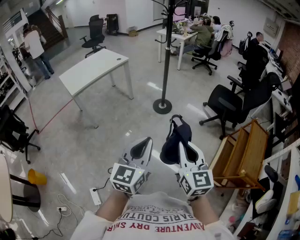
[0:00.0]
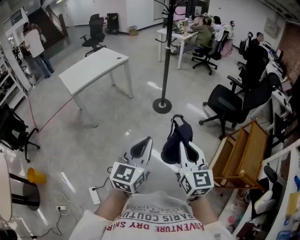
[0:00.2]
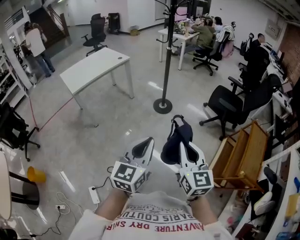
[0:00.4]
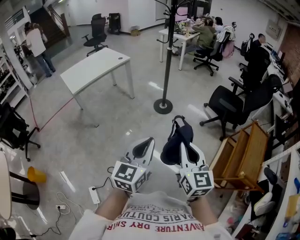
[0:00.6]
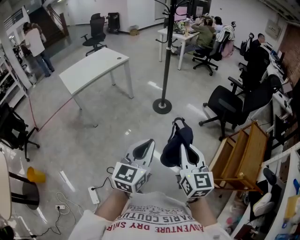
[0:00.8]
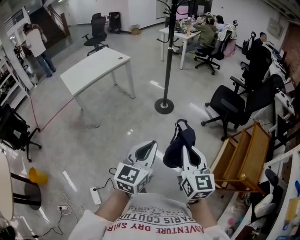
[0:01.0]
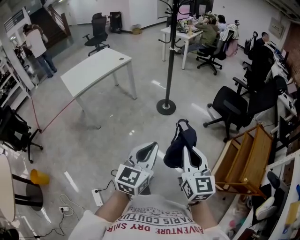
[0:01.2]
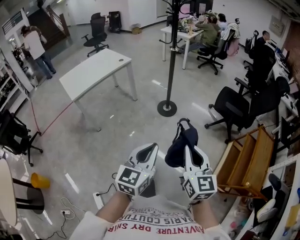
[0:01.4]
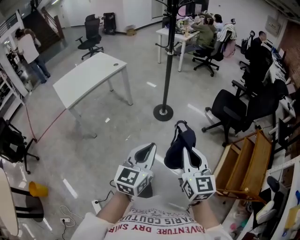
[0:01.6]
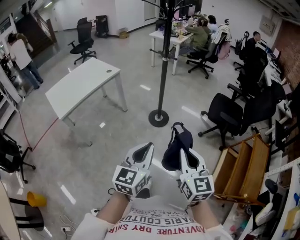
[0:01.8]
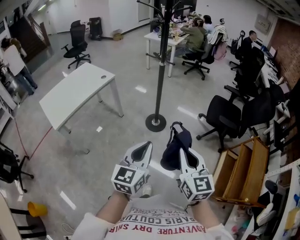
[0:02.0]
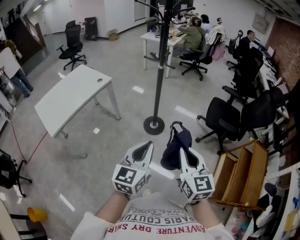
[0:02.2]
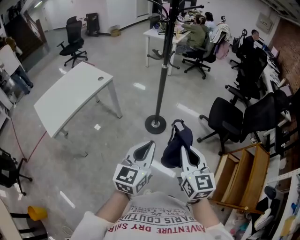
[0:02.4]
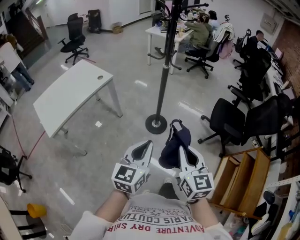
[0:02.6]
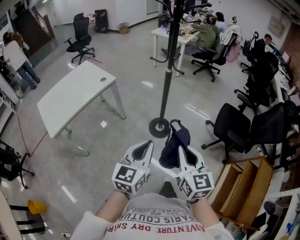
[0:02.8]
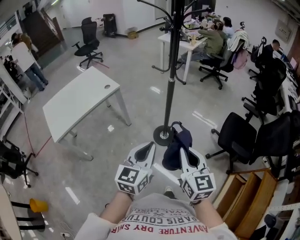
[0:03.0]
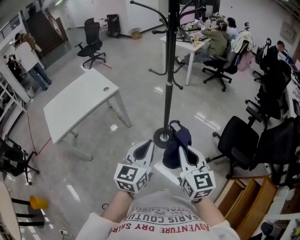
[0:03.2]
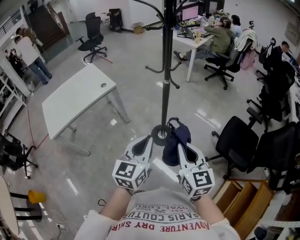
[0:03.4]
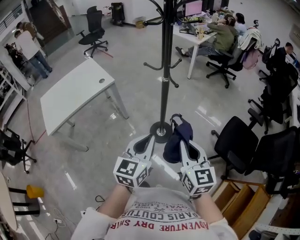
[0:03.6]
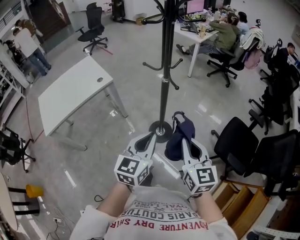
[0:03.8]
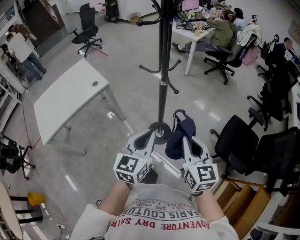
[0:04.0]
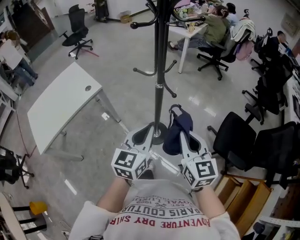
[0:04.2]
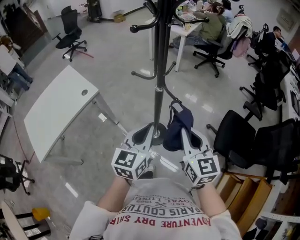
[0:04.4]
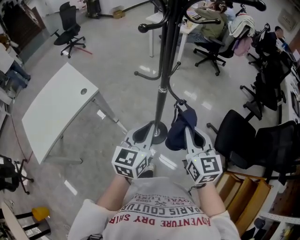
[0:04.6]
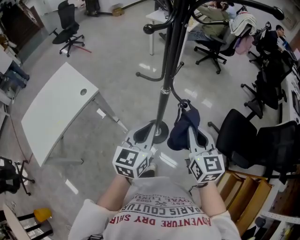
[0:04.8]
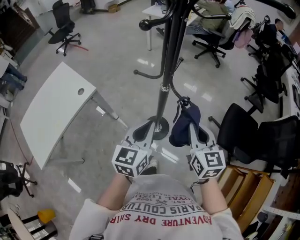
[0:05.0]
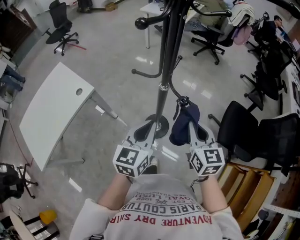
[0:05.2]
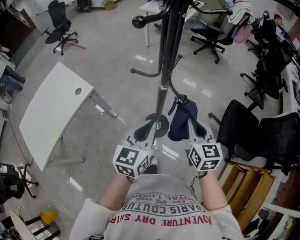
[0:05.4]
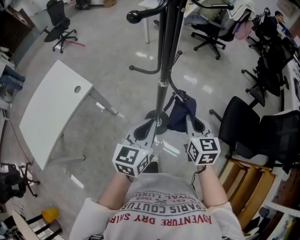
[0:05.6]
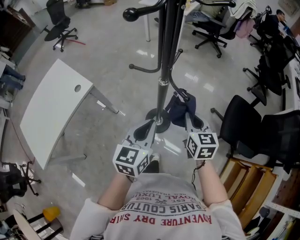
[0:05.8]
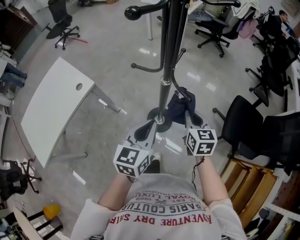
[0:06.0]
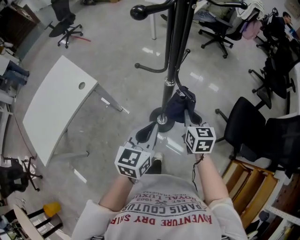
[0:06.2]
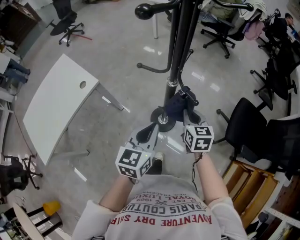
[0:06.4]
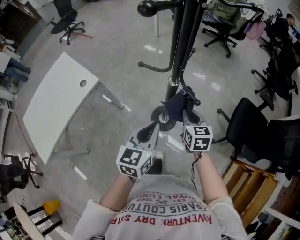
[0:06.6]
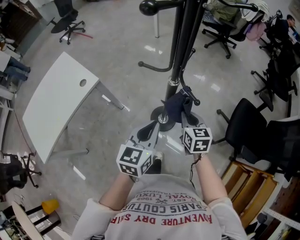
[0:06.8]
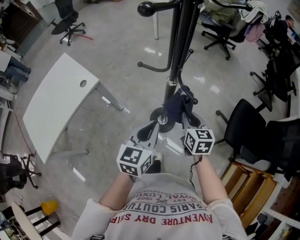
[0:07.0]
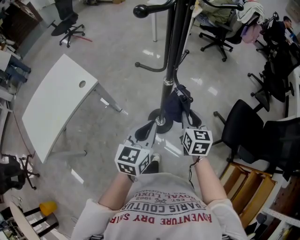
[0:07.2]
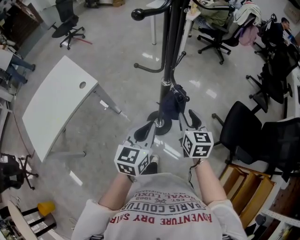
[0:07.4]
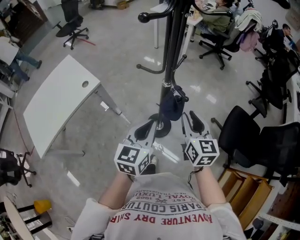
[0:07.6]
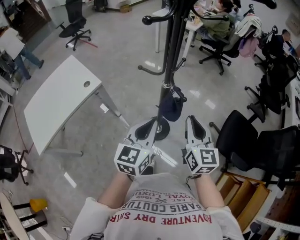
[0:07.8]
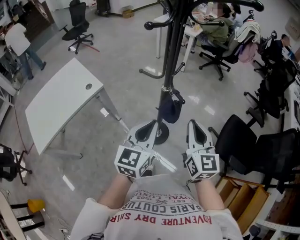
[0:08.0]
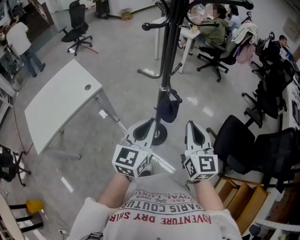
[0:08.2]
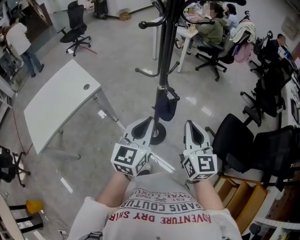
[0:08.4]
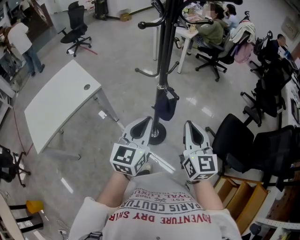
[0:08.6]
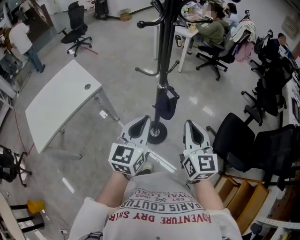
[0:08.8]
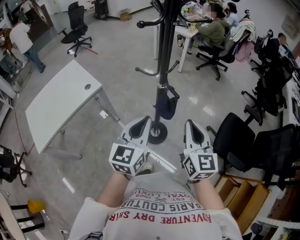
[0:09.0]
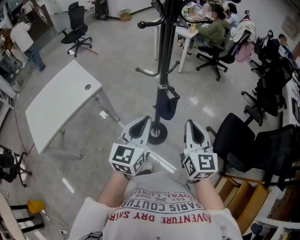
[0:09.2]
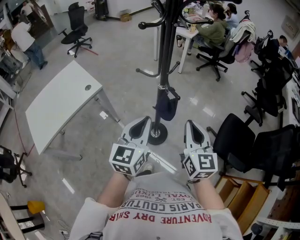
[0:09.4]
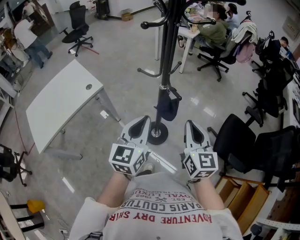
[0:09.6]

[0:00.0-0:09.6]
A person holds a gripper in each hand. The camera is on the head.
0.0 to 1.6 s: The two grippers go roughly 15 cm forward.
1.6 to 3.2 s: The pair of grippers is taken forward, some 50 cm.
3.2 to 4.8 s: The grippers both shift forward by about 30 cm.
4.8 to 6.4 s: The left gripper is displaced downward by approximately 5 cm, while the right gripper shifts roughly 20 cm downward and forward.
6.4 to 8.0 s: The left gripper moves upward and backward, roughly 10 cm, while the right gripper travels upward and backward by approximately 20 cm, swivels approximately 30 degrees, and opens, then closes again.
8.0 to 9.6 s: There are only small adjustments of the grippers.

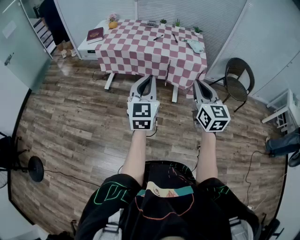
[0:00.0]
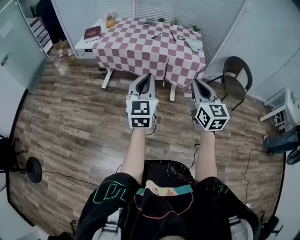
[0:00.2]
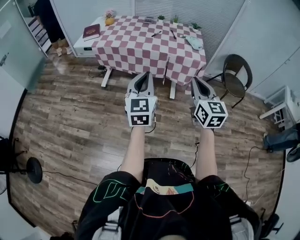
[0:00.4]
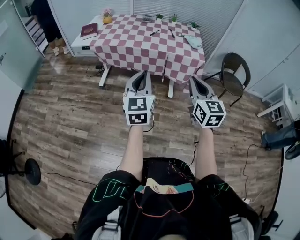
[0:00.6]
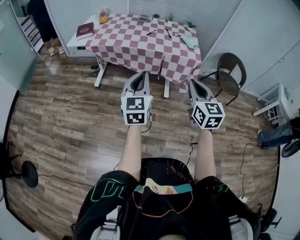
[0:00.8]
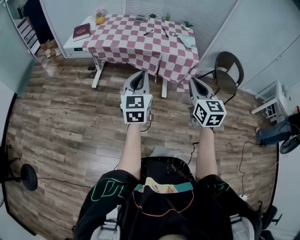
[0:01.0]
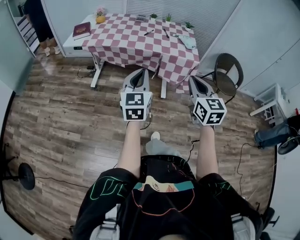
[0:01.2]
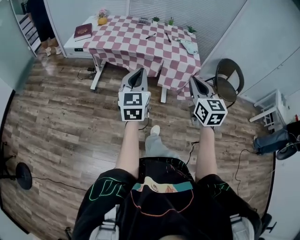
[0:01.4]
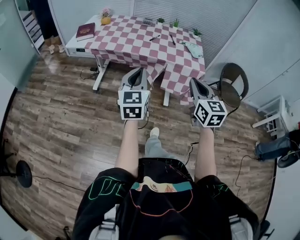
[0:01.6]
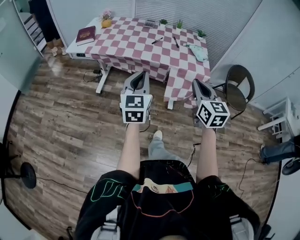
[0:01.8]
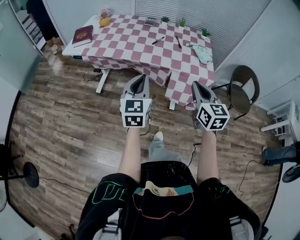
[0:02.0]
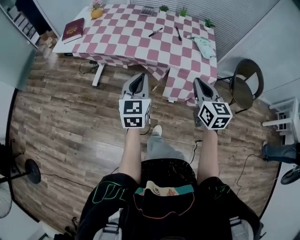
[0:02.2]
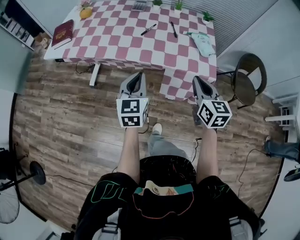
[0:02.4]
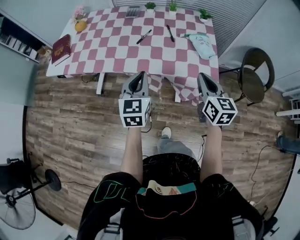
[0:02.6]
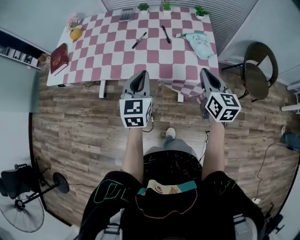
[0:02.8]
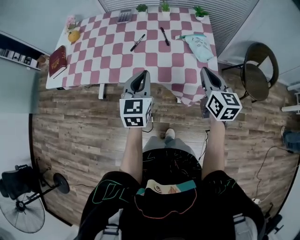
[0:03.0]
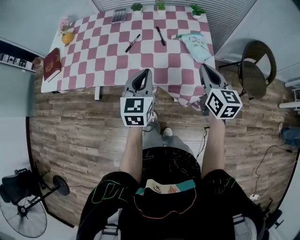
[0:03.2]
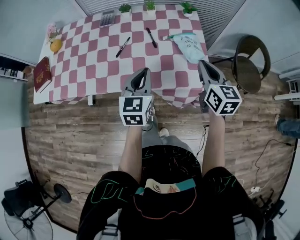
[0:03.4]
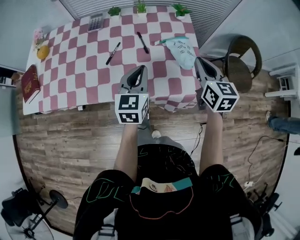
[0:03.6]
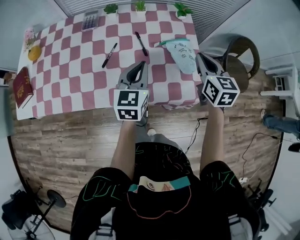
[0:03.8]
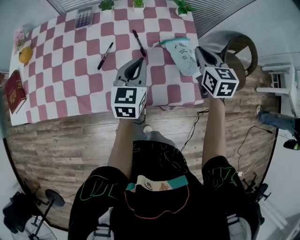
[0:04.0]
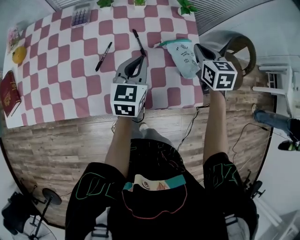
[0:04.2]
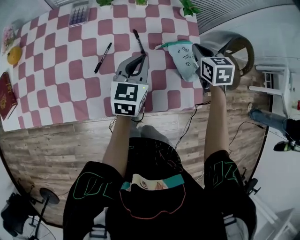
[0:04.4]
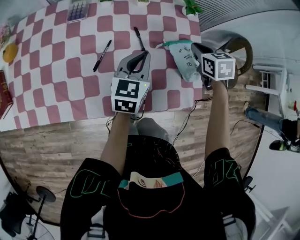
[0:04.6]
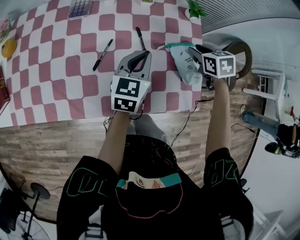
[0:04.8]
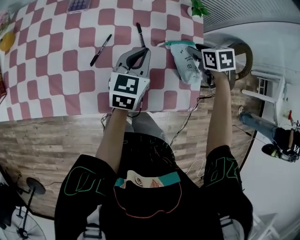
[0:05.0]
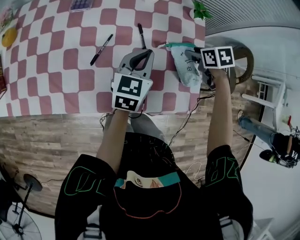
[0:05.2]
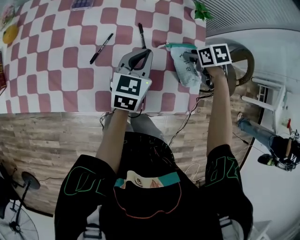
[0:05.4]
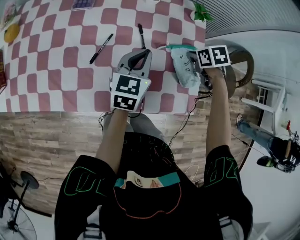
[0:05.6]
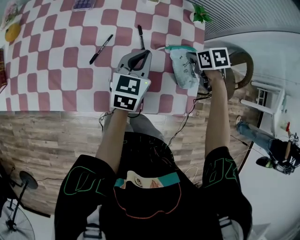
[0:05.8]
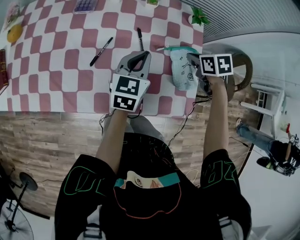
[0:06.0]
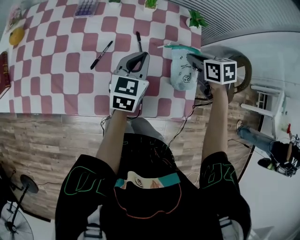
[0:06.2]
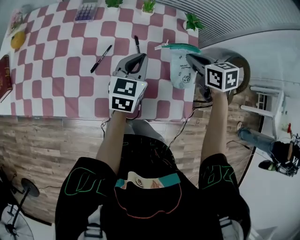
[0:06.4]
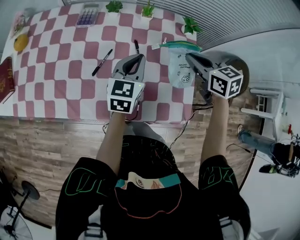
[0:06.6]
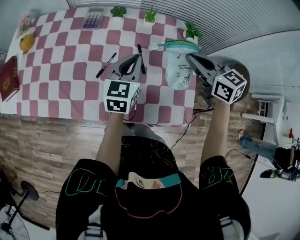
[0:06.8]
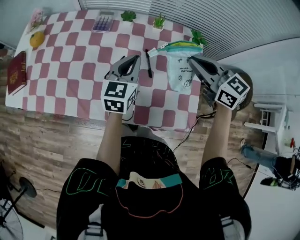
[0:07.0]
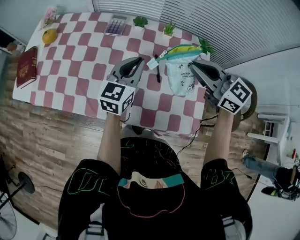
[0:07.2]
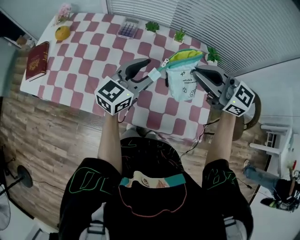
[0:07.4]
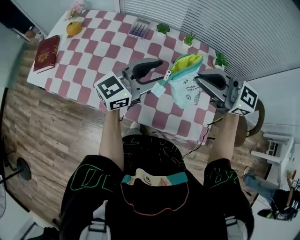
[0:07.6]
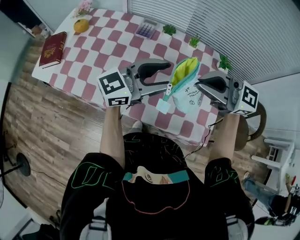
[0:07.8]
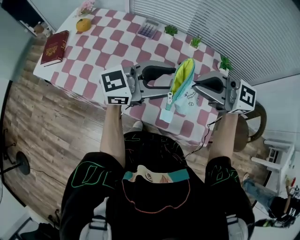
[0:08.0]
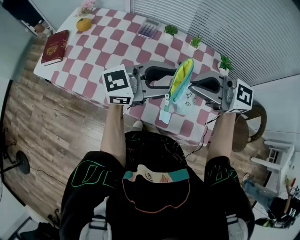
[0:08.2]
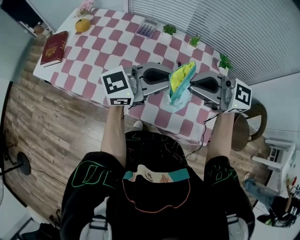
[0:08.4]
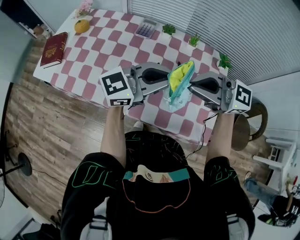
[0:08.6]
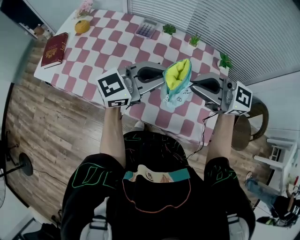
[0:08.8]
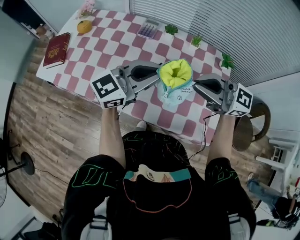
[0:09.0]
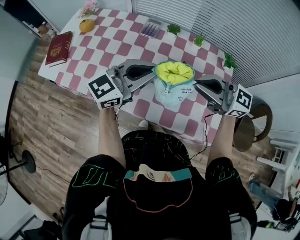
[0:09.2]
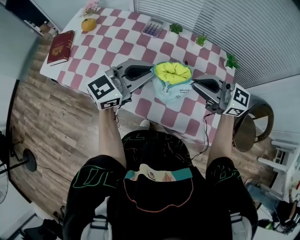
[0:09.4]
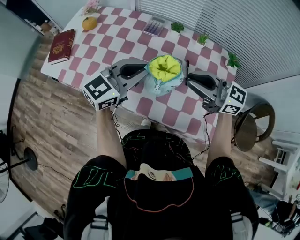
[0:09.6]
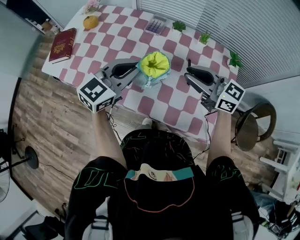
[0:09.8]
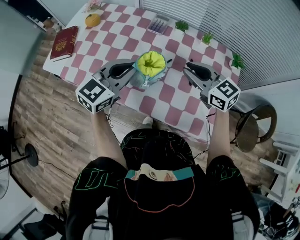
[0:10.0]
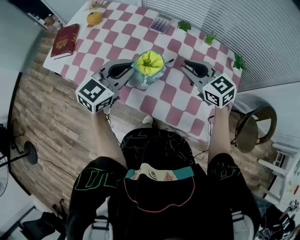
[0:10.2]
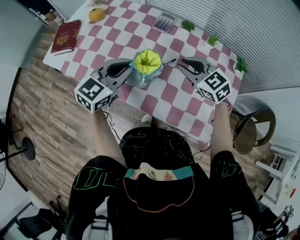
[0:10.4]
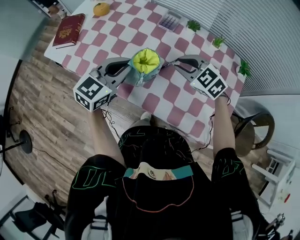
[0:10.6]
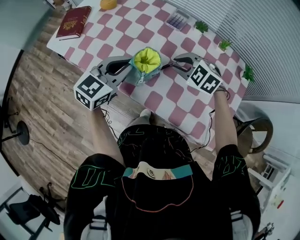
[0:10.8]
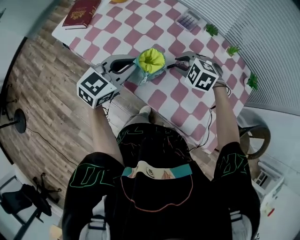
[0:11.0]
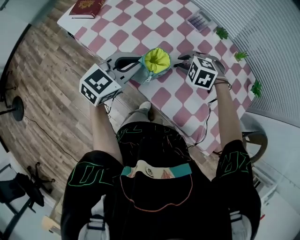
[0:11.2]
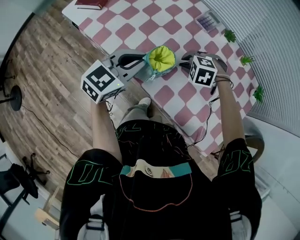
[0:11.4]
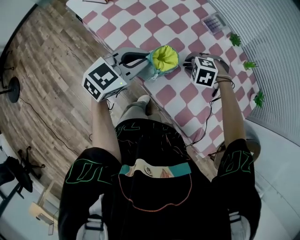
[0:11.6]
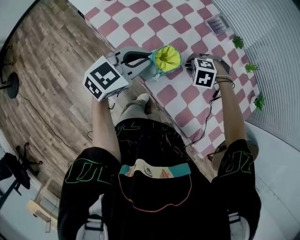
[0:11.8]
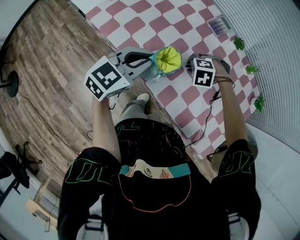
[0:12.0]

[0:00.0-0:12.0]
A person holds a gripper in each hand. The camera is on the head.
0.0 to 1.6 s: Both grippers travel together forward, roughly 10 cm.
1.6 to 3.0 s: Both grippers travel together forward and to the right, approximately 40 cm. The right gripper changes its angle by about 20 degrees.
3.0 to 4.4 s: The grippers both shift forward by roughly 25 cm. The left gripper changes its angle by roughly 20 degrees; the right gripper points its fingers some 30 degrees further downward.
4.4 to 6.0 s: The right gripper is displaced downward by approximately 5 cm, changes its angle by roughly 30 degrees, and opens and closes again.
6.0 to 7.6 s: The left gripper travels upward by roughly 15 cm, swivels approximately 40 degrees, and opens its fingers. Meanwhile the right gripper goes roughly 25 cm upward, and points its fingers roughly 60 degrees further upward.
7.6 to 9.0 s: The left gripper closes up.
9.0 to 10.4 s: The left gripper shifts by roughly 15 cm, and swivels roughly 30 degrees, while the right gripper moves downward, roughly 15 cm, and angles its fingers downward, by some 30 degrees.
10.4 to 12.0 s: The right gripper travels downward by roughly 20 cm, and points its fingers some 60 degrees further downward; the left gripper ends up some 10 cm from where it was.

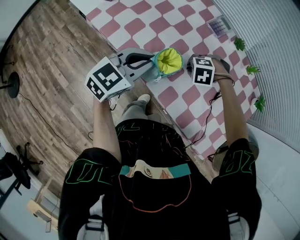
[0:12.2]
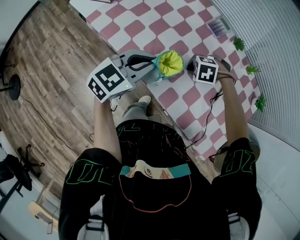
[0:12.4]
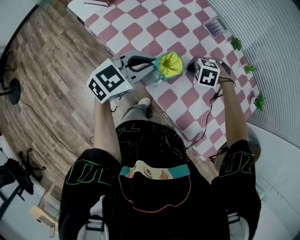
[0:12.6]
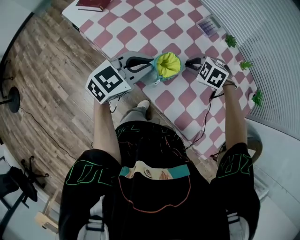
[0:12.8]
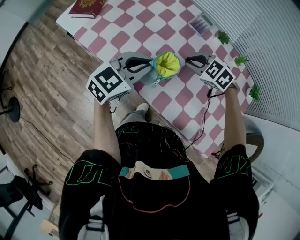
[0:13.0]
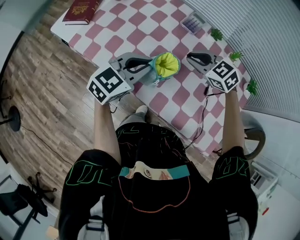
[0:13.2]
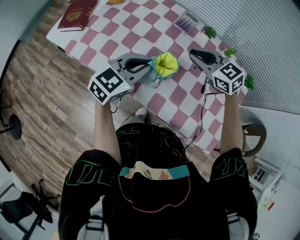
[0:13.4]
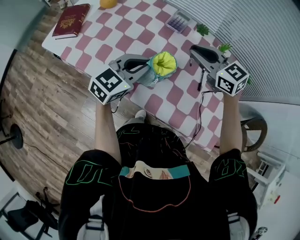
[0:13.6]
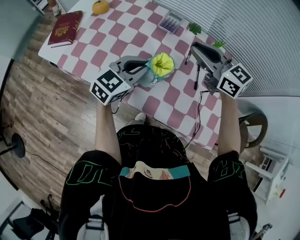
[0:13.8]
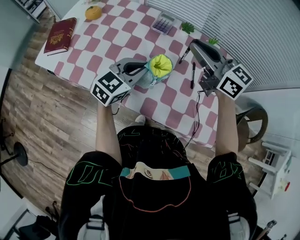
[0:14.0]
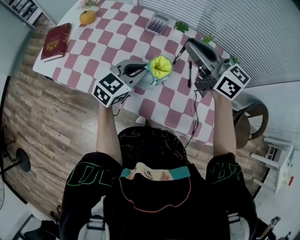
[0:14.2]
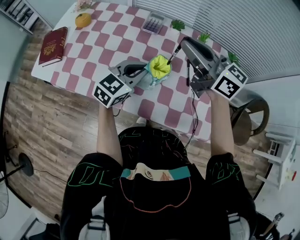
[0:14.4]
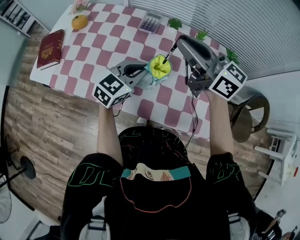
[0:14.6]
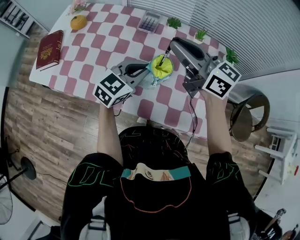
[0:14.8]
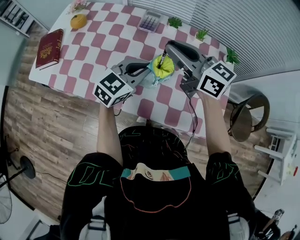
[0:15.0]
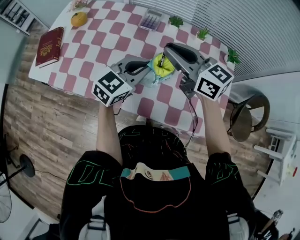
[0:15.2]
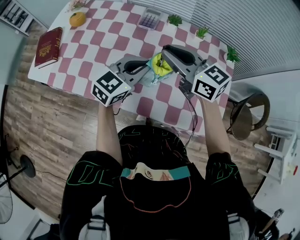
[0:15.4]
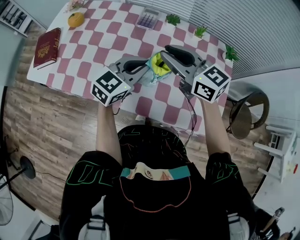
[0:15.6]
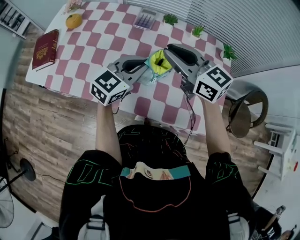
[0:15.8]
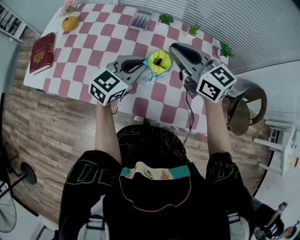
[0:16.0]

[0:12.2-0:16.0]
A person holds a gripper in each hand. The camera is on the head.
12.2 to 13.4 s: The right gripper heads upward, covering about 20 cm, and angles its fingers upward, by about 60 degrees. Meanwhile the left gripper moves approximately 10 cm.
13.4 to 14.8 s: The left gripper is displaced to the right by approximately 10 cm. Meanwhile the right gripper goes about 15 cm upward, and angles its fingers upward, by approximately 30 degrees.
14.8 to 16.0 s: The grippers move only a little.
